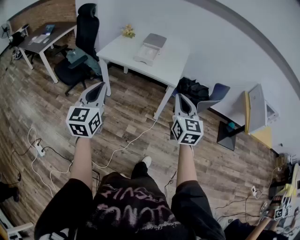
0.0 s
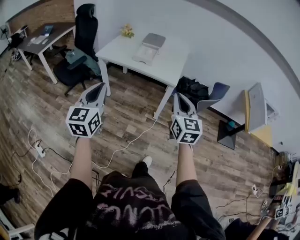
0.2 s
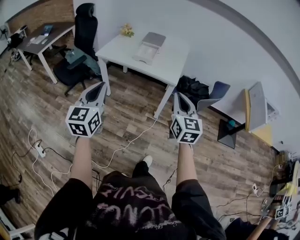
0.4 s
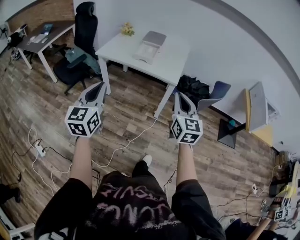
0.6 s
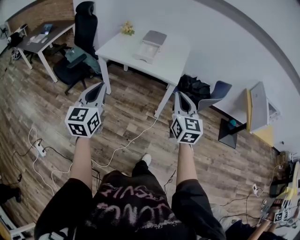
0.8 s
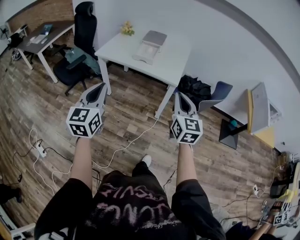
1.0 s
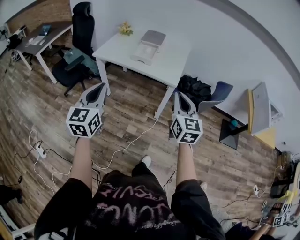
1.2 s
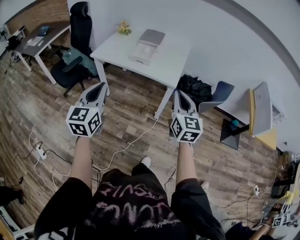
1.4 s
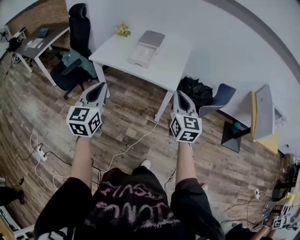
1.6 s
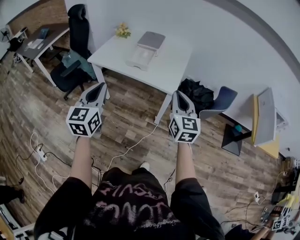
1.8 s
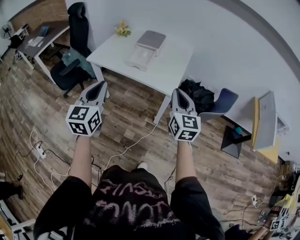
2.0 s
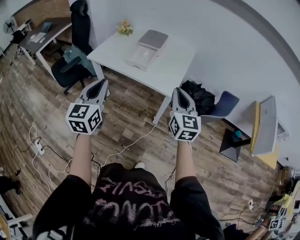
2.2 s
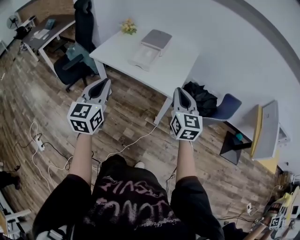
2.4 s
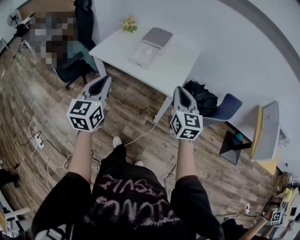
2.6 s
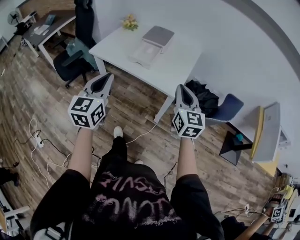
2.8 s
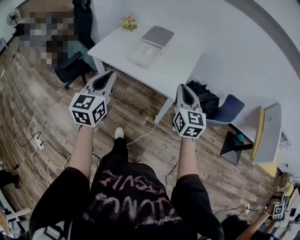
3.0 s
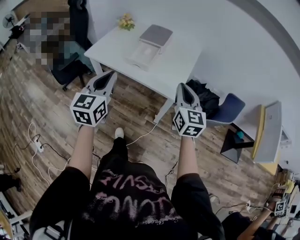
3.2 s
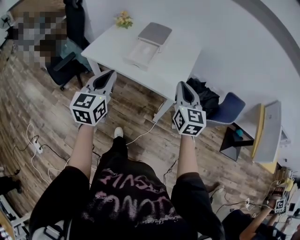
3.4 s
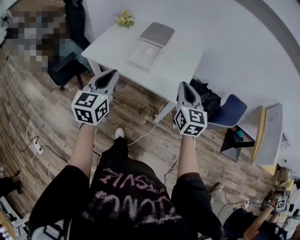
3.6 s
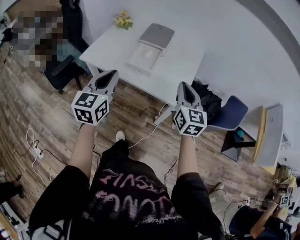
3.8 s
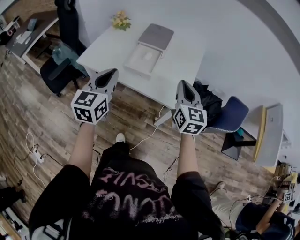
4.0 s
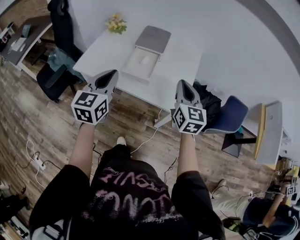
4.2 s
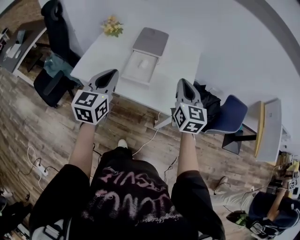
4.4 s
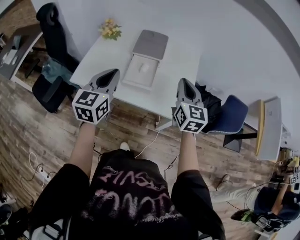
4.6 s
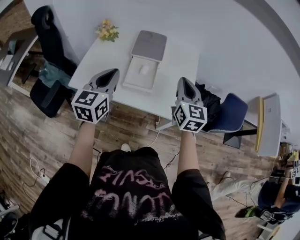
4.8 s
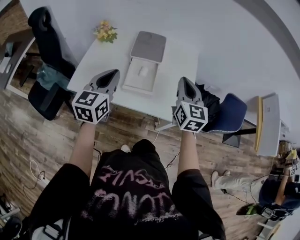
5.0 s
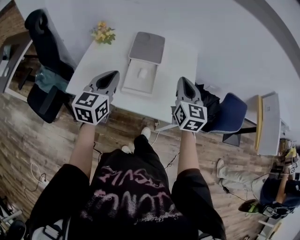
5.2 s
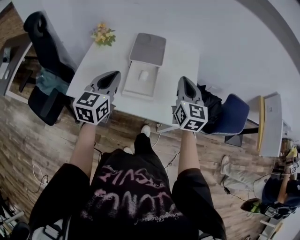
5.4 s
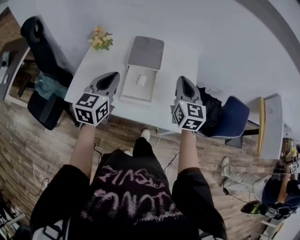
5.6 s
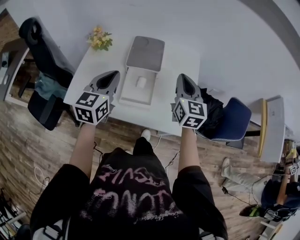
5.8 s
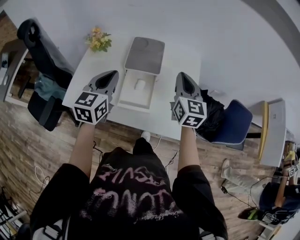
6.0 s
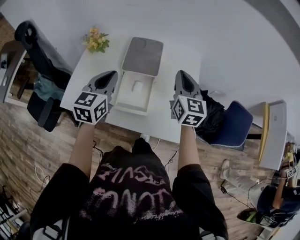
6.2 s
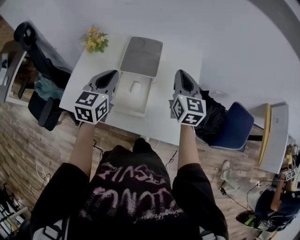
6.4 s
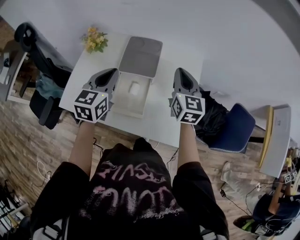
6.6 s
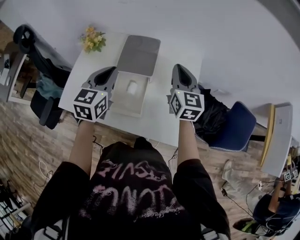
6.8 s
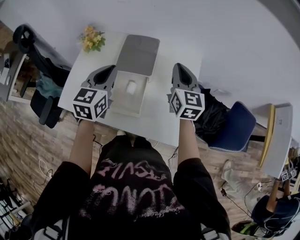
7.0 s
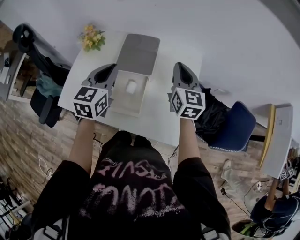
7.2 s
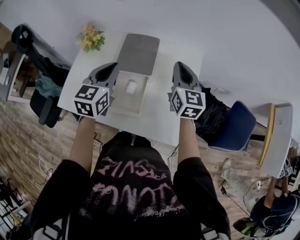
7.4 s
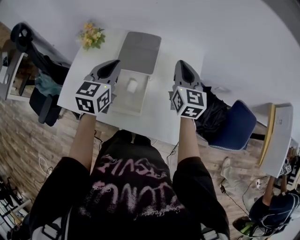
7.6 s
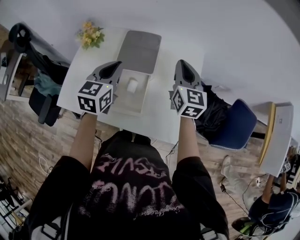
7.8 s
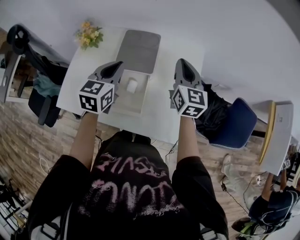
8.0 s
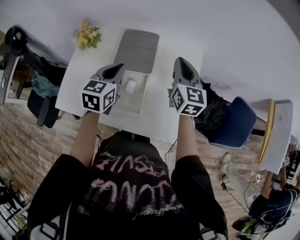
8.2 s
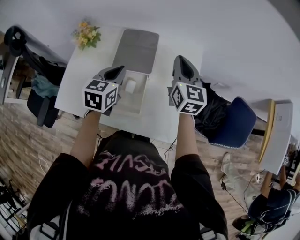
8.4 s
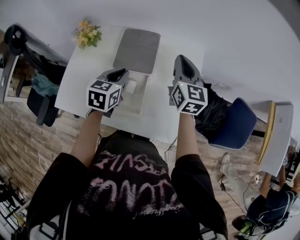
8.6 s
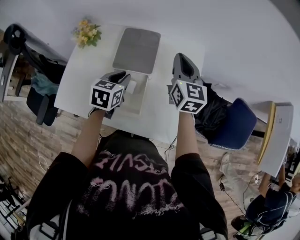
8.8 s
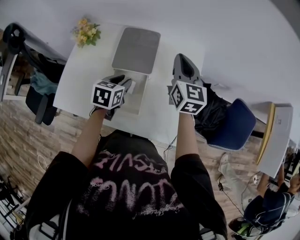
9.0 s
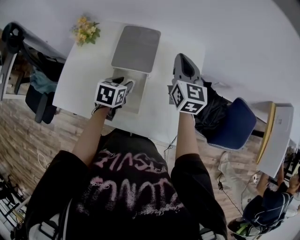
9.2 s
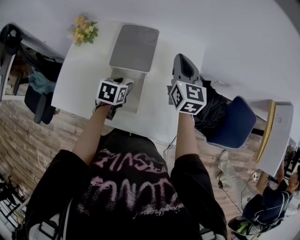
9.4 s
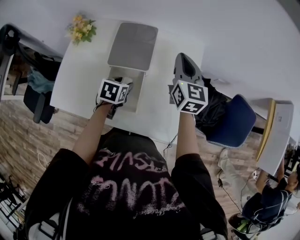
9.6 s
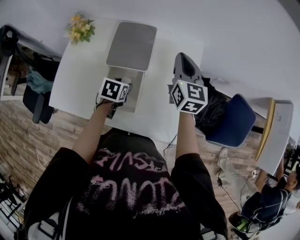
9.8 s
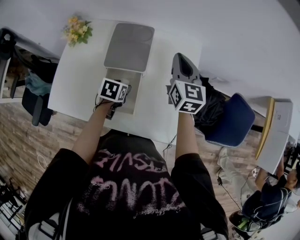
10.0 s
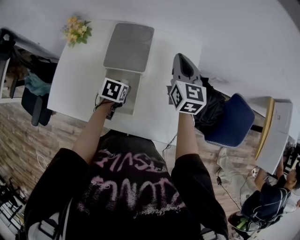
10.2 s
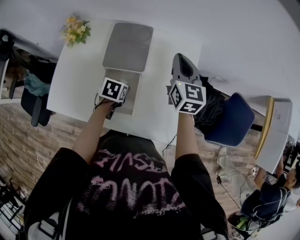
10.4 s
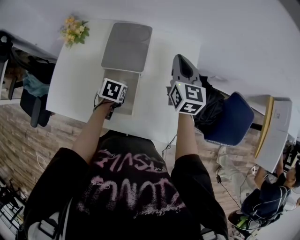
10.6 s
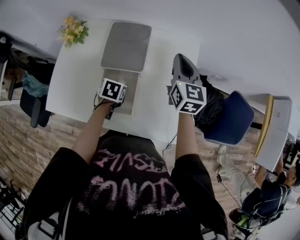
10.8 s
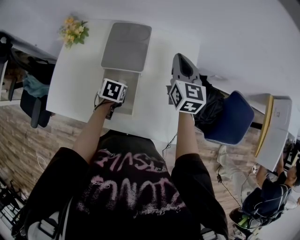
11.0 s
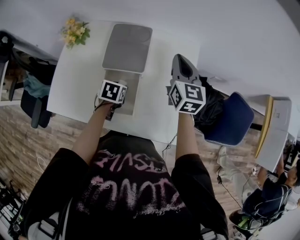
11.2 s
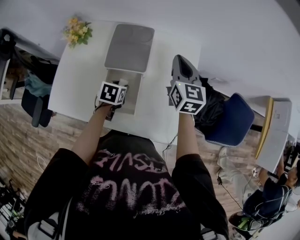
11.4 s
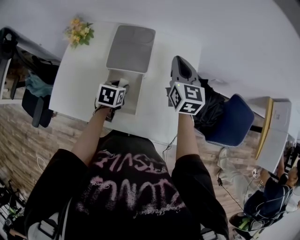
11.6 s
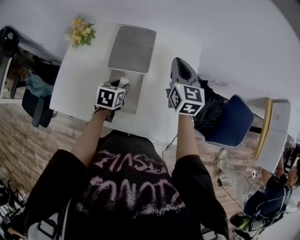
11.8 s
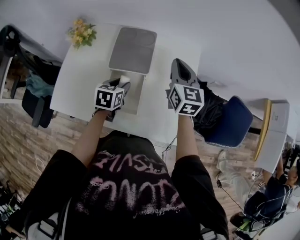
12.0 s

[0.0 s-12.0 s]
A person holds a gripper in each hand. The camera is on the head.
0.0 to 1.6 s: The right gripper shifts some 15 cm forward. The left gripper travels forward and to the right by roughly 15 cm.
1.6 to 3.0 s: The right gripper heads forward, covering approximately 15 cm. The left gripper goes about 15 cm forward and to the right.
3.0 to 4.4 s: The grippers both shift forward by about 20 cm.
4.4 to 6.0 s: The two grippers go approximately 20 cm forward.
6.0 to 7.6 s: The left gripper moves forward and to the right, approximately 10 cm, while the right gripper goes roughly 10 cm forward.
7.6 to 9.0 s: The left gripper moves downward, approximately 15 cm, rotates some 30 degrees, and opens.
9.0 to 10.4 s: The left gripper shifts roughly 10 cm downward, rotates roughly 20 degrees, and opens.
10.4 to 12.0 s: The left gripper goes roughly 5 cm upward, and swivels some 20 degrees.

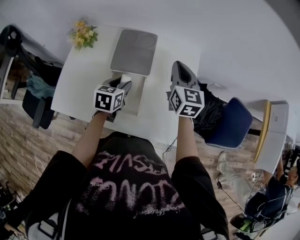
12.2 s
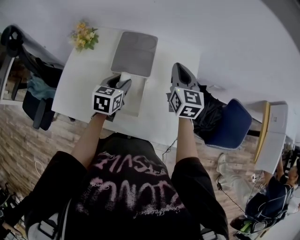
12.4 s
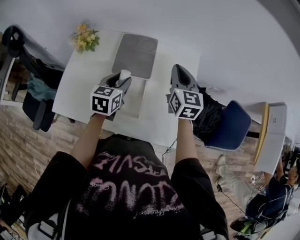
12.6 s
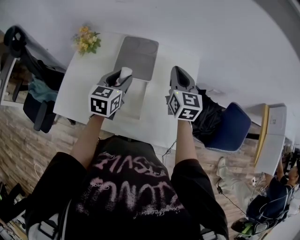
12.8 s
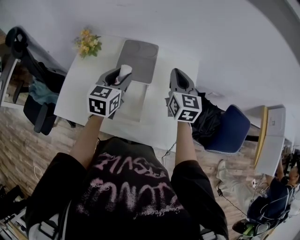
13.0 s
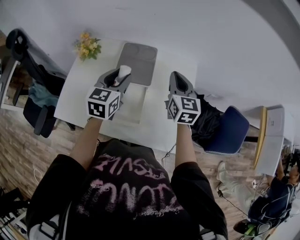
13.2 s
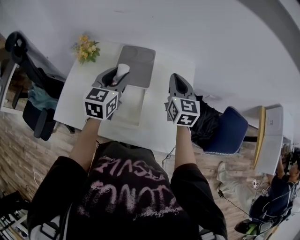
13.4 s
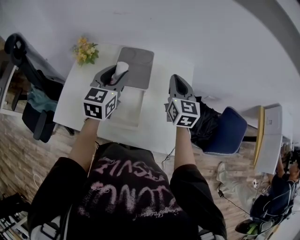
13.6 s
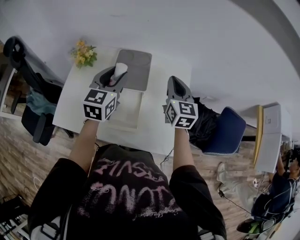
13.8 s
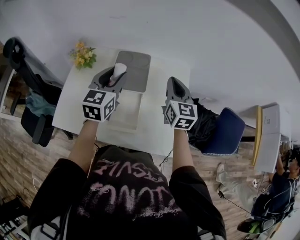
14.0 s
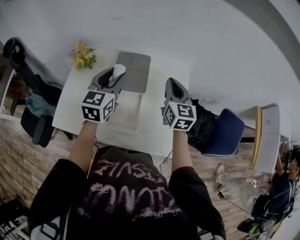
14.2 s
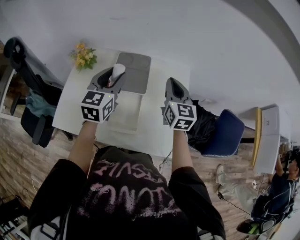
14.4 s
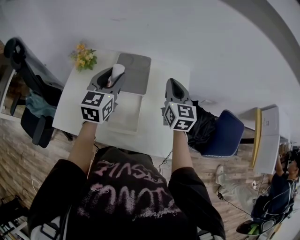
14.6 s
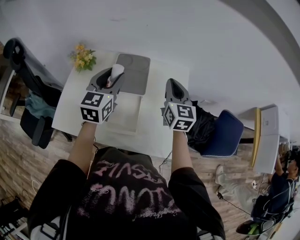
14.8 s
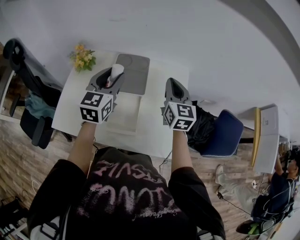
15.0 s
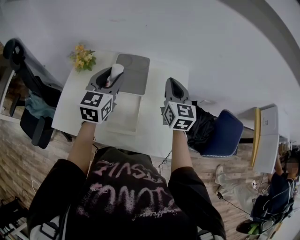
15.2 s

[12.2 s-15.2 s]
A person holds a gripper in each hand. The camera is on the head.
12.2 to 13.8 s: The left gripper goes approximately 20 cm upward, and changes its angle by approximately 30 degrees.
13.8 to 15.2 s: The grippers move only a little.

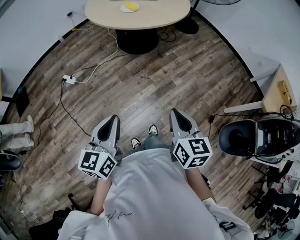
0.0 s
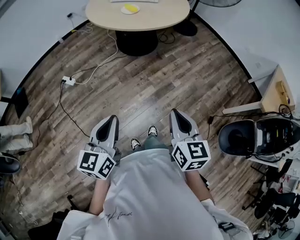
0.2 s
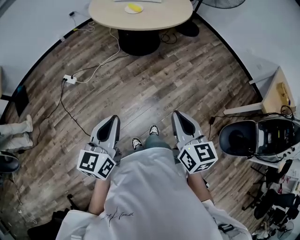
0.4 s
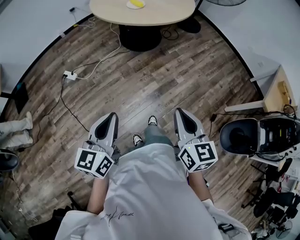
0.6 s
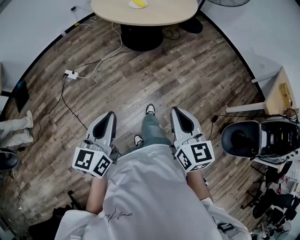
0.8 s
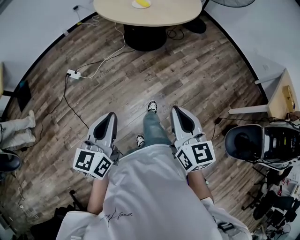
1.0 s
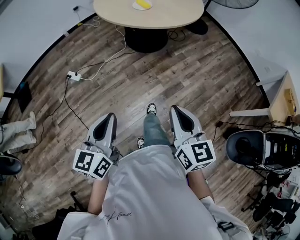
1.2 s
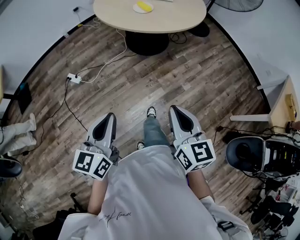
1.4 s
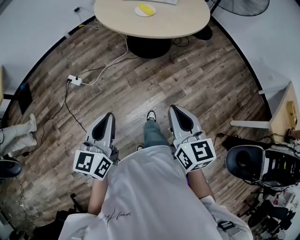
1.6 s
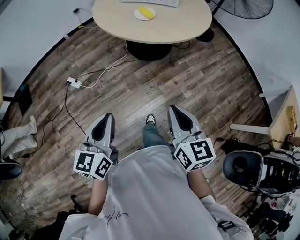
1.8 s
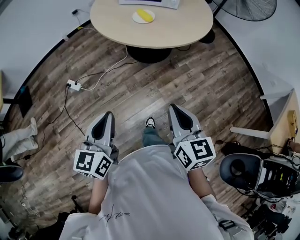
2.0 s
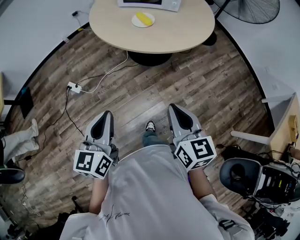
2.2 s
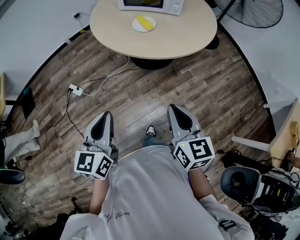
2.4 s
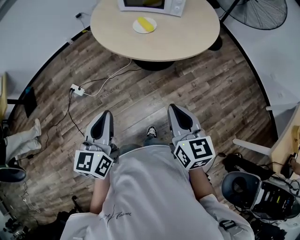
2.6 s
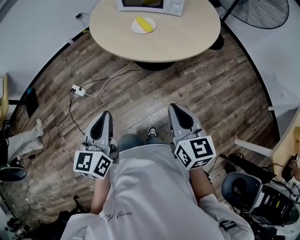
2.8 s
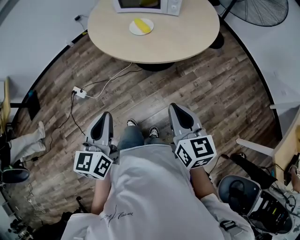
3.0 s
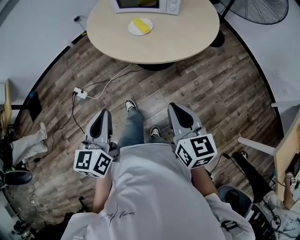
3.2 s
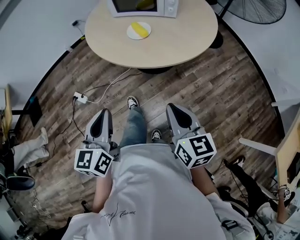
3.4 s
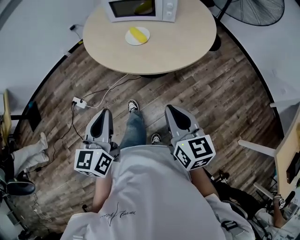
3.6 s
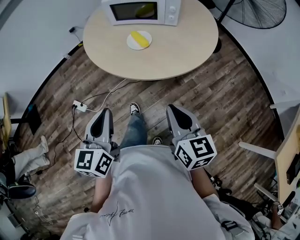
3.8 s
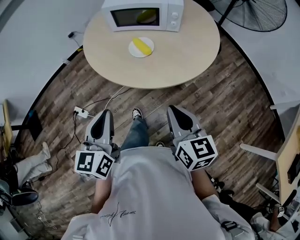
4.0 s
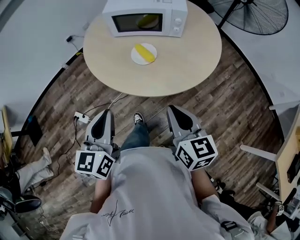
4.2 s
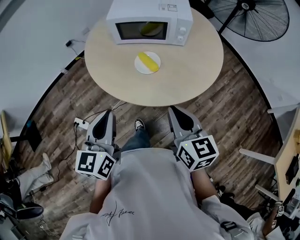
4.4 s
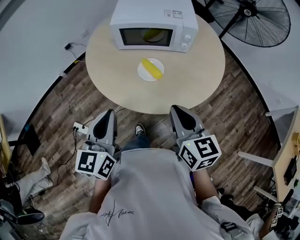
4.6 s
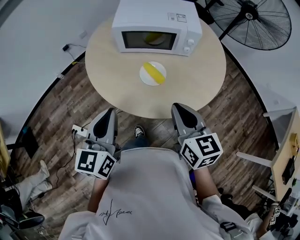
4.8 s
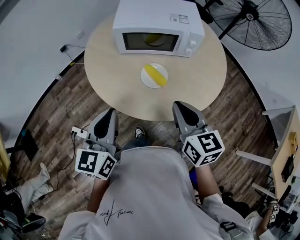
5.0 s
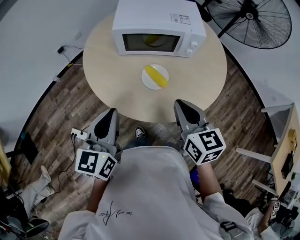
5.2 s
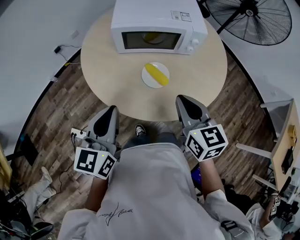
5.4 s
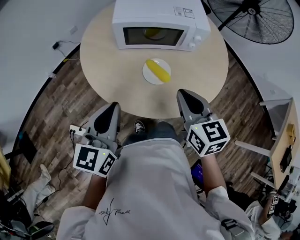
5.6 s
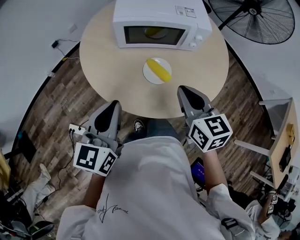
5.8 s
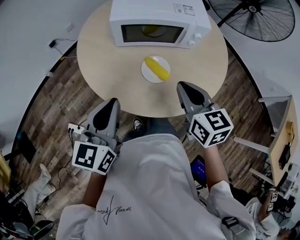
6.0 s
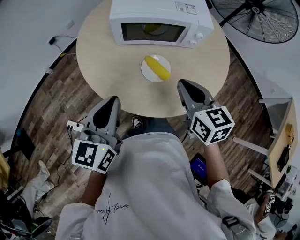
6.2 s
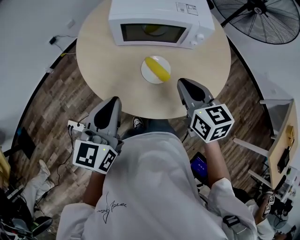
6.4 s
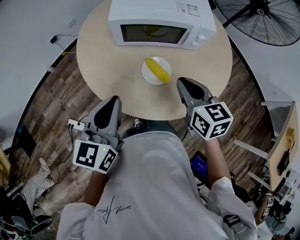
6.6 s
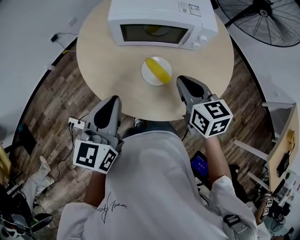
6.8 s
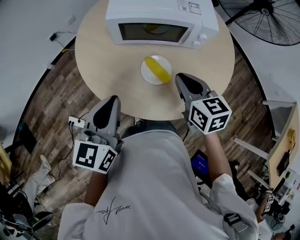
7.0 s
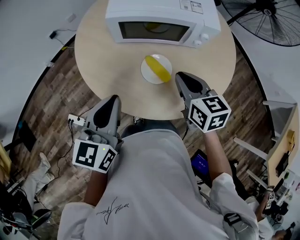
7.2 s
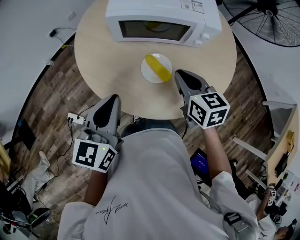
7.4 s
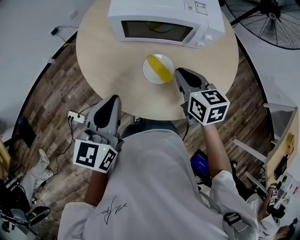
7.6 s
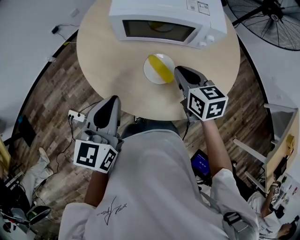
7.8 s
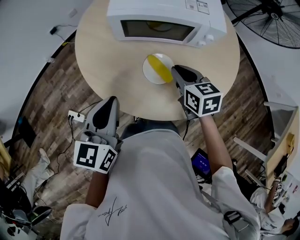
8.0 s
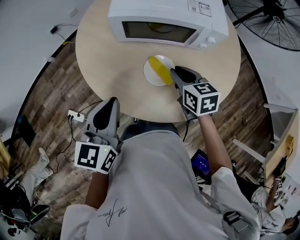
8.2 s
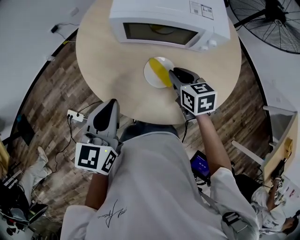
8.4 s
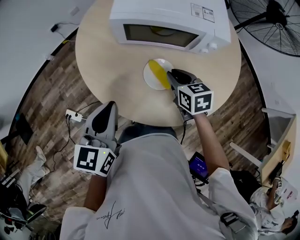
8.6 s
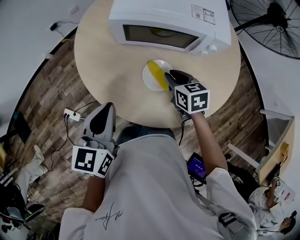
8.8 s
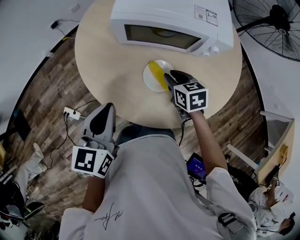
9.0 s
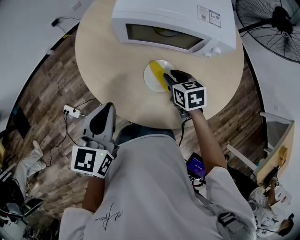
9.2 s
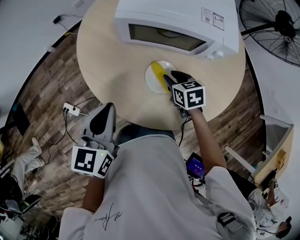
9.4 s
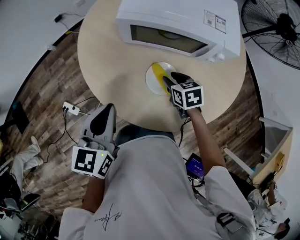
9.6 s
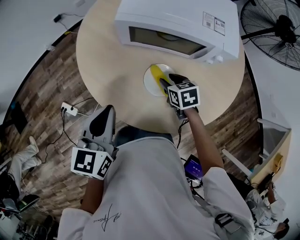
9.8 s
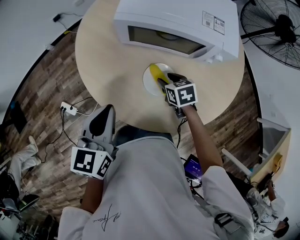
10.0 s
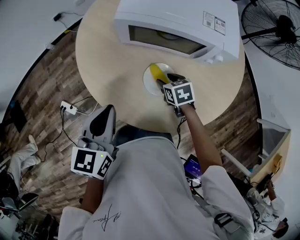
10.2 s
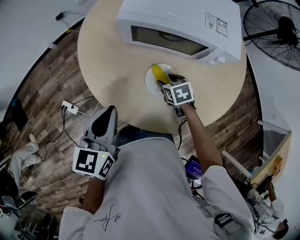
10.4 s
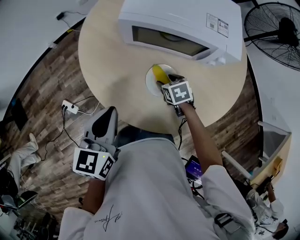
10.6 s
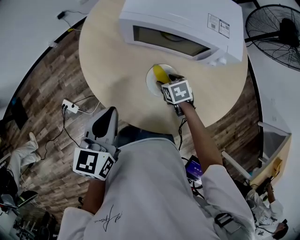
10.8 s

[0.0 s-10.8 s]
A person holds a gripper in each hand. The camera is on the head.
0.0 to 1.6 s: Both grippers move forward and to the left, roughly 15 cm.
1.6 to 3.0 s: The right gripper shifts approximately 25 cm forward and to the right. Meanwhile the left gripper is displaced forward by some 20 cm.
3.0 to 4.6 s: Both grippers travel together forward, some 30 cm.
4.6 to 6.2 s: The grippers both shift forward by roughly 15 cm.
6.2 to 7.8 s: The right gripper travels forward and downward by approximately 10 cm.
7.8 to 9.2 s: The right gripper travels downward by about 10 cm, and opens up.
9.2 to 10.8 s: The right gripper is displaced downward by about 10 cm, and opens its fingers.
